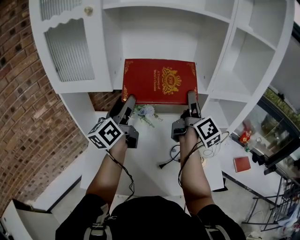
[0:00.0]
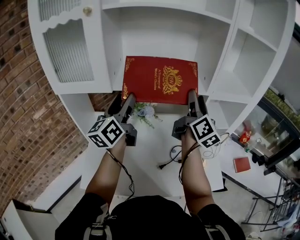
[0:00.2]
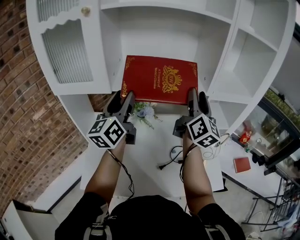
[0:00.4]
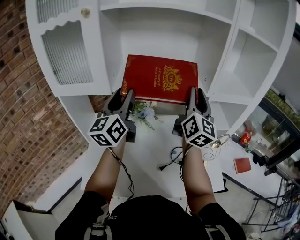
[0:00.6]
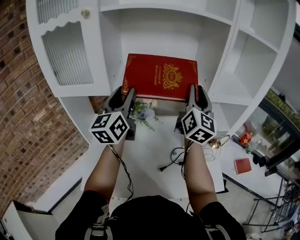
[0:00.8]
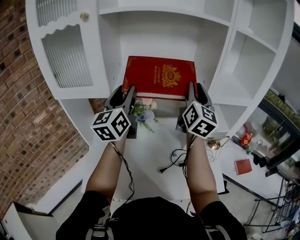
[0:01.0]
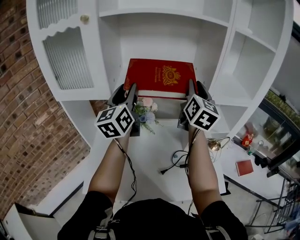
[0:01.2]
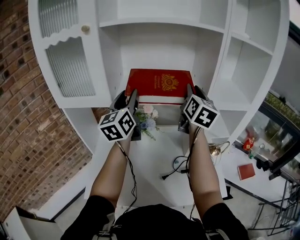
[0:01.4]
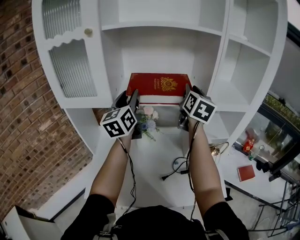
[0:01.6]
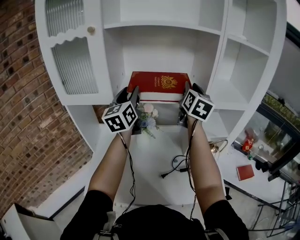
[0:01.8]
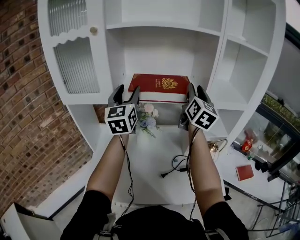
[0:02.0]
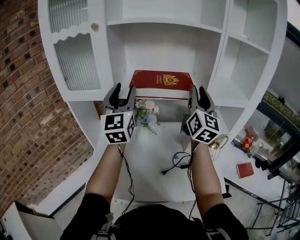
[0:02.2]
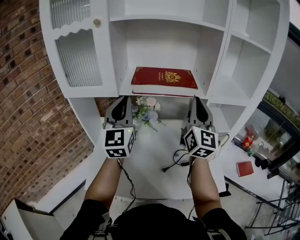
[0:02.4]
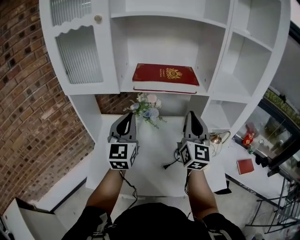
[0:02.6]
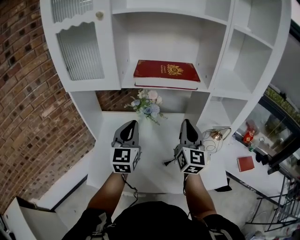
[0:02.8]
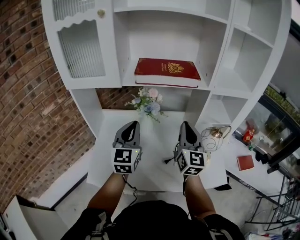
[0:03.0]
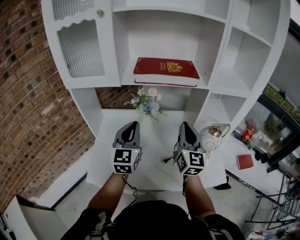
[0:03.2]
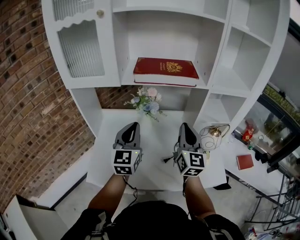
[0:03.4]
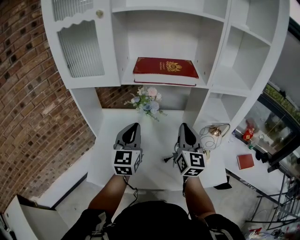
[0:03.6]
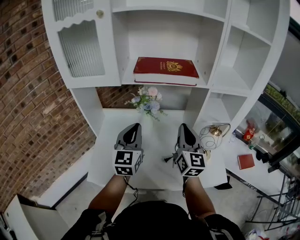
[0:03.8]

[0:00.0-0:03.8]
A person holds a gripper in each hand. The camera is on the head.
0:00.0 to 0:01.2: The grippers both shift upward and forward by some 10 cm. The right gripper twists about 40 degrees counterclockwise, seen from behind, and closes up. The left gripper changes its angle by approximately 20 degrees.
0:01.2 to 0:02.6: Both grippers move backward and downward, about 15 cm. The right gripper closes; the left gripper changes its angle by roughly 30 degrees, and closes.
0:02.6 to 0:03.8: The grippers both shift downward by some 5 cm.

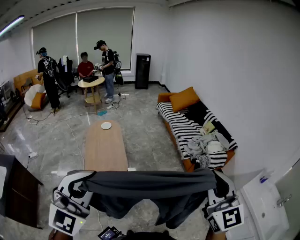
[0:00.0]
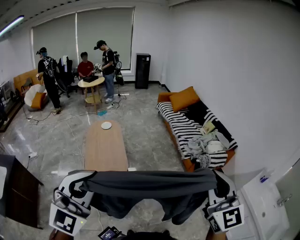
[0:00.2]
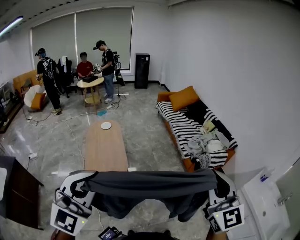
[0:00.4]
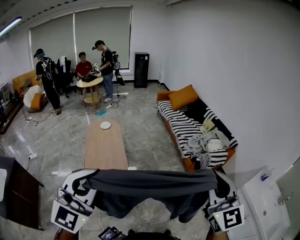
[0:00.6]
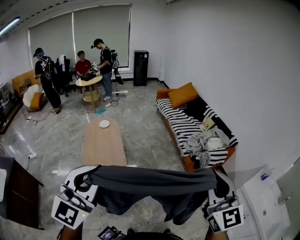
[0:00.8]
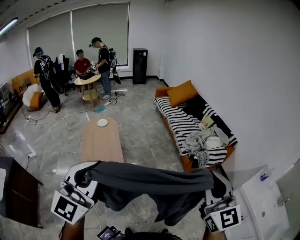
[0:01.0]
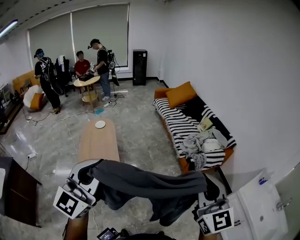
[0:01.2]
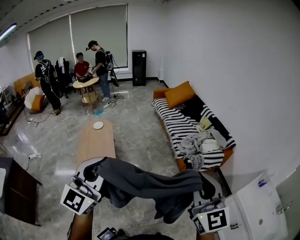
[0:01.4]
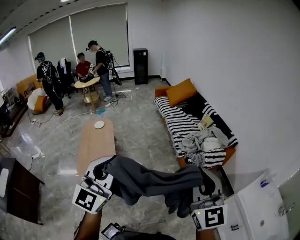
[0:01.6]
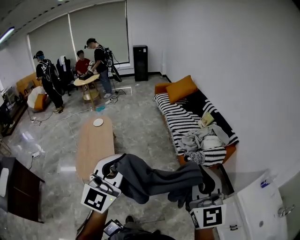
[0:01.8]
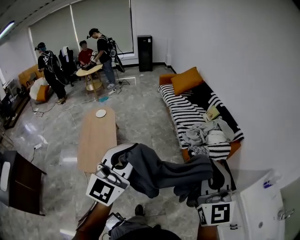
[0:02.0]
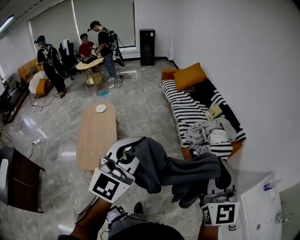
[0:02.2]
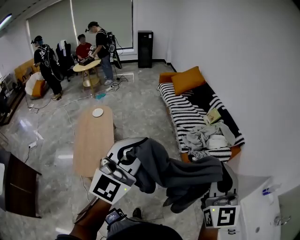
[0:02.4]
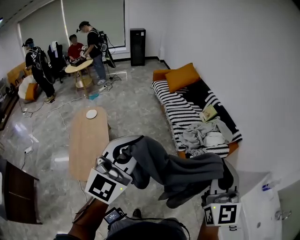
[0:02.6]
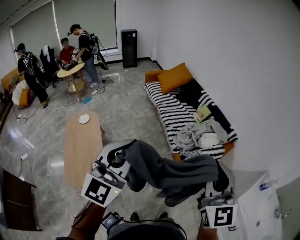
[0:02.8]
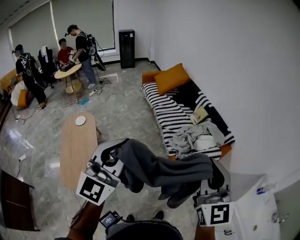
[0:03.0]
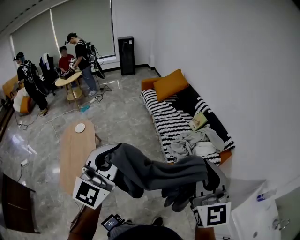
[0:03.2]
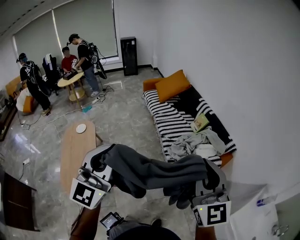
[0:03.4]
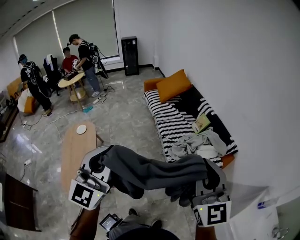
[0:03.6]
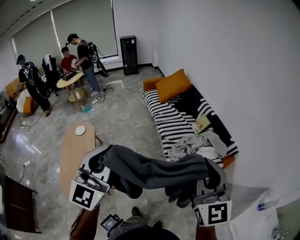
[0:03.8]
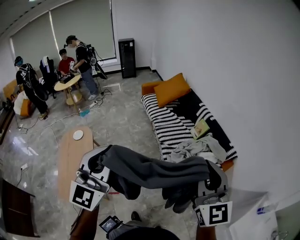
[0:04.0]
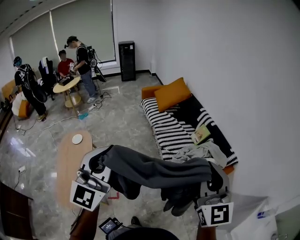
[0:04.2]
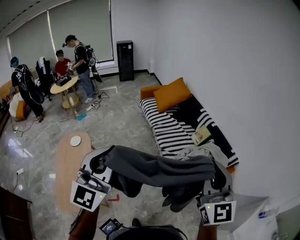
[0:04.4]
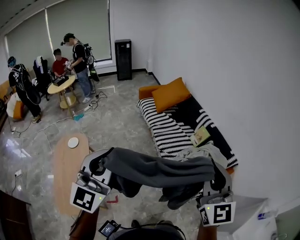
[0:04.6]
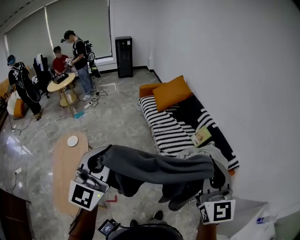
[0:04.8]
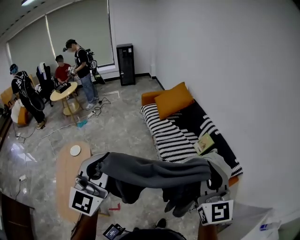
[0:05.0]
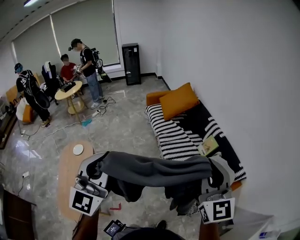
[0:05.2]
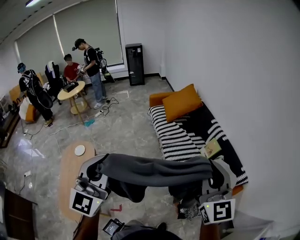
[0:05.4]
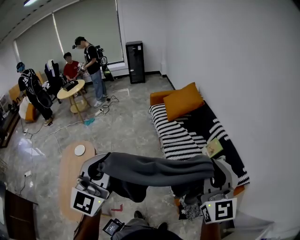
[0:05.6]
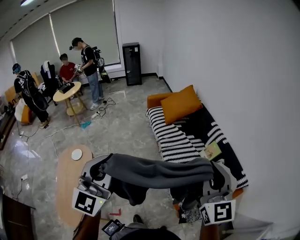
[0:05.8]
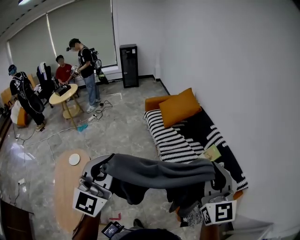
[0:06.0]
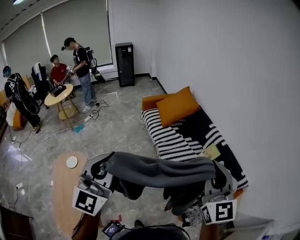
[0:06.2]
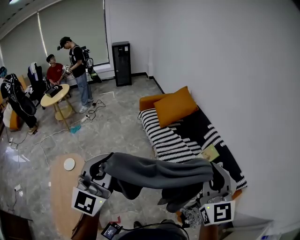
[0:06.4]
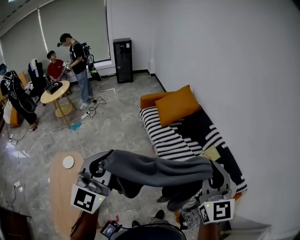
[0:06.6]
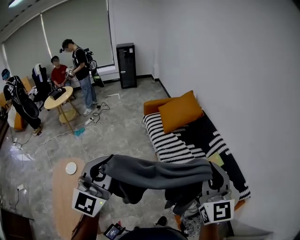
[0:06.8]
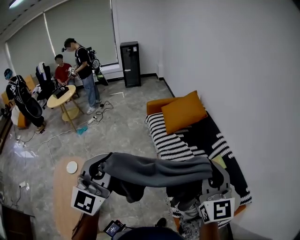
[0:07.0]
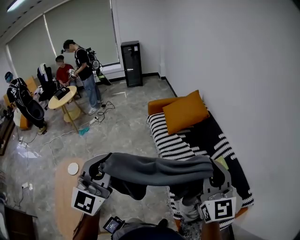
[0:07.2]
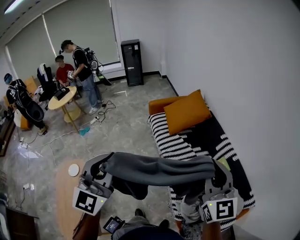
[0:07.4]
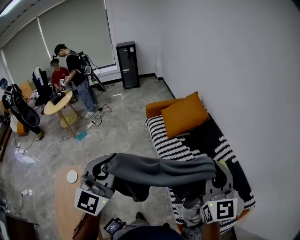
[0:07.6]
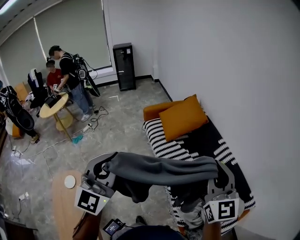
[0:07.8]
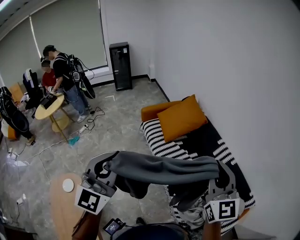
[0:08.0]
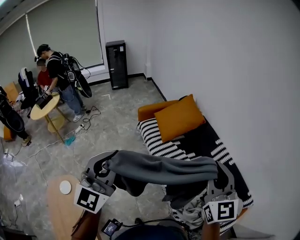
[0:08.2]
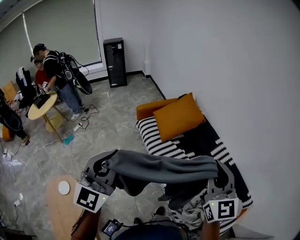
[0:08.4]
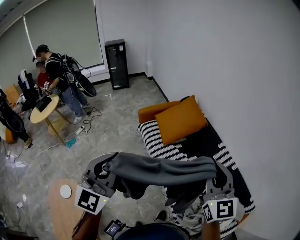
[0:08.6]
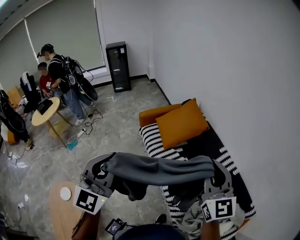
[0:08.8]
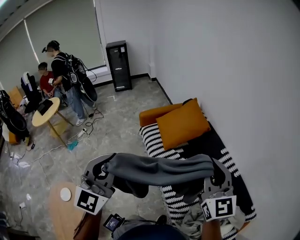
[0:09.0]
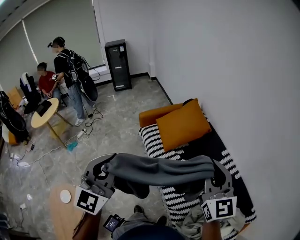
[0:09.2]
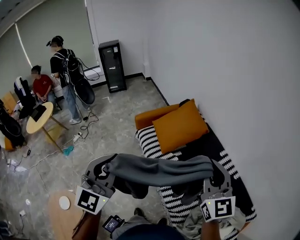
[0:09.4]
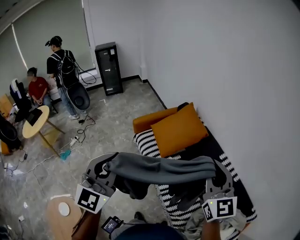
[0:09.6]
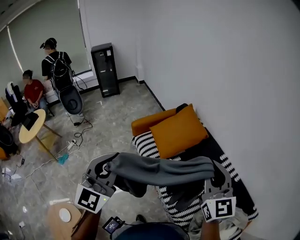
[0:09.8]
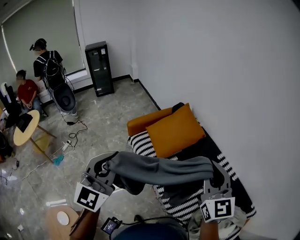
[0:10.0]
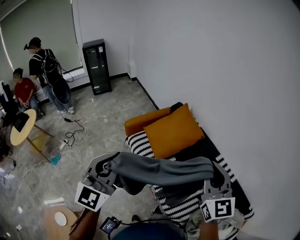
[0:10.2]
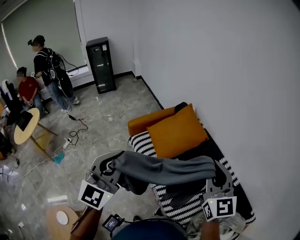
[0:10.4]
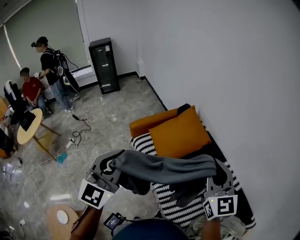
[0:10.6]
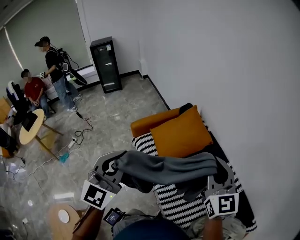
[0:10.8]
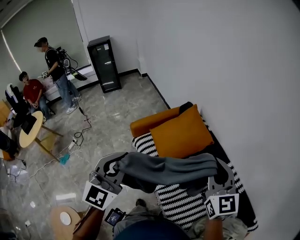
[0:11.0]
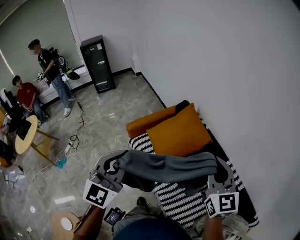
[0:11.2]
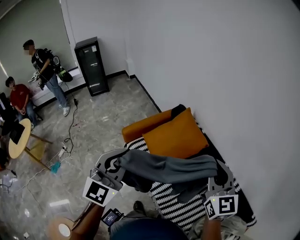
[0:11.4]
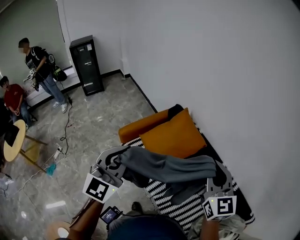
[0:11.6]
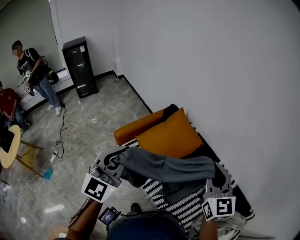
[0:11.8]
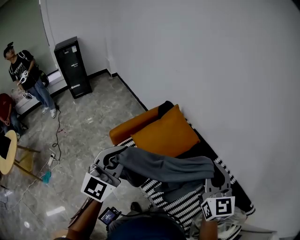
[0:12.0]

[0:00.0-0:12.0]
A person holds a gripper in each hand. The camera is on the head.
0:00.0 to 0:01.6: The two grippers go some 25 cm to the right and forward. The left gripper changes its angle by roughly 20 degrees.
0:01.6 to 0:03.0: Both grippers travel together forward, some 25 cm.
0:03.0 to 0:04.4: Both grippers travel together forward, roughly 20 cm.
0:04.4 to 0:06.0: The two grippers go some 25 cm forward.
0:06.0 to 0:07.6: Both grippers travel together forward, roughly 25 cm.
0:07.6 to 0:09.0: The grippers both shift forward by about 20 cm.
0:09.0 to 0:10.4: Both grippers travel together forward, about 20 cm.
0:10.4 to 0:12.0: The right gripper shifts roughly 15 cm forward. The left gripper goes approximately 20 cm forward.

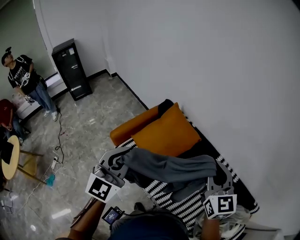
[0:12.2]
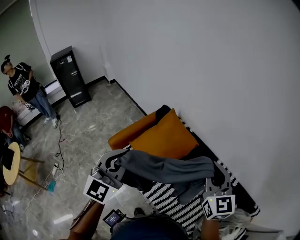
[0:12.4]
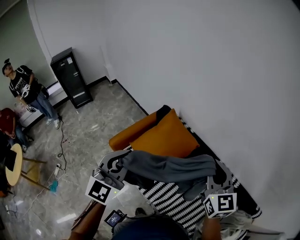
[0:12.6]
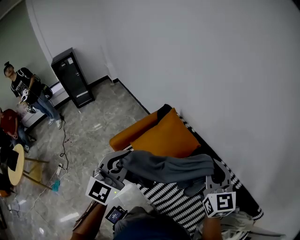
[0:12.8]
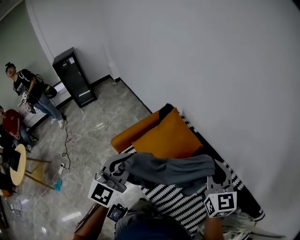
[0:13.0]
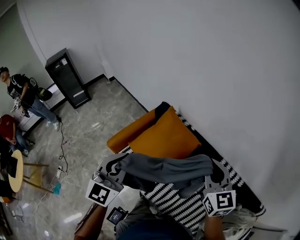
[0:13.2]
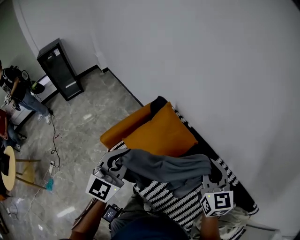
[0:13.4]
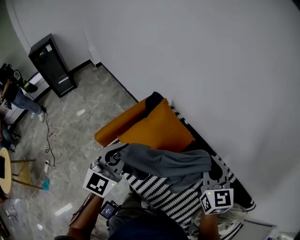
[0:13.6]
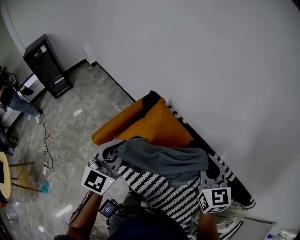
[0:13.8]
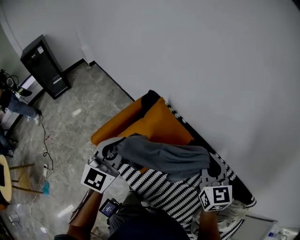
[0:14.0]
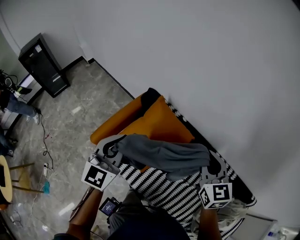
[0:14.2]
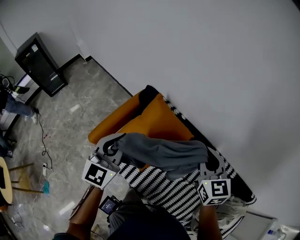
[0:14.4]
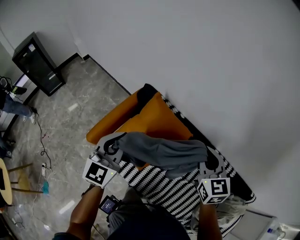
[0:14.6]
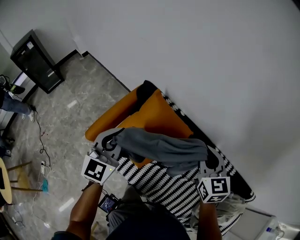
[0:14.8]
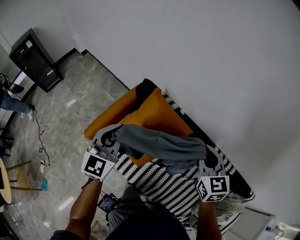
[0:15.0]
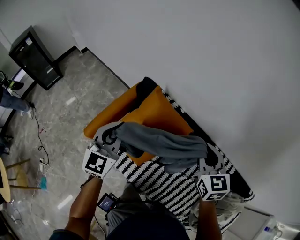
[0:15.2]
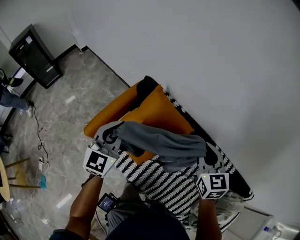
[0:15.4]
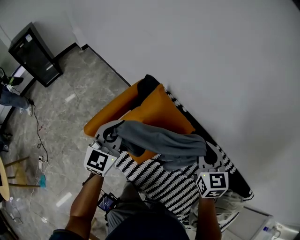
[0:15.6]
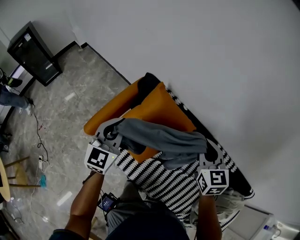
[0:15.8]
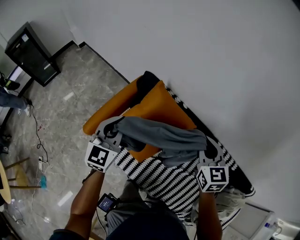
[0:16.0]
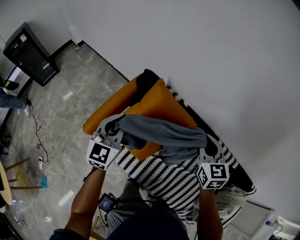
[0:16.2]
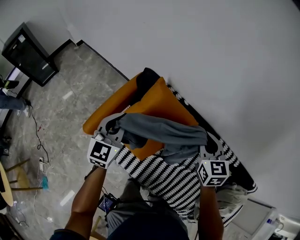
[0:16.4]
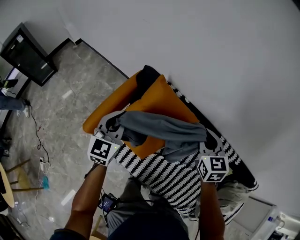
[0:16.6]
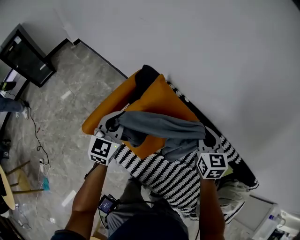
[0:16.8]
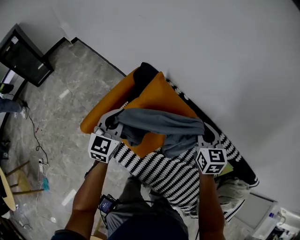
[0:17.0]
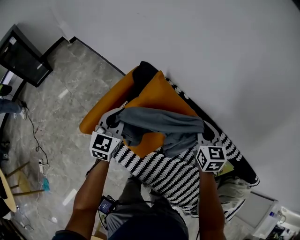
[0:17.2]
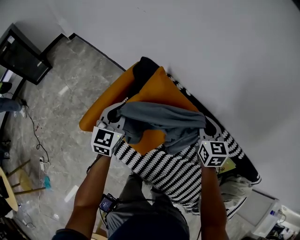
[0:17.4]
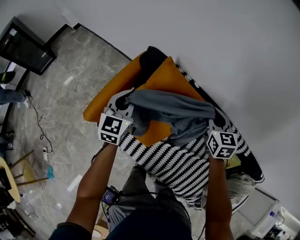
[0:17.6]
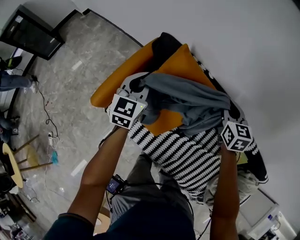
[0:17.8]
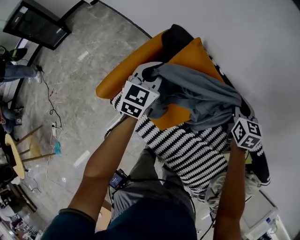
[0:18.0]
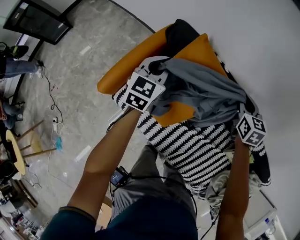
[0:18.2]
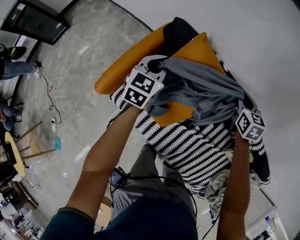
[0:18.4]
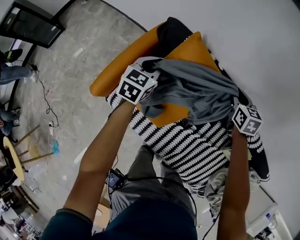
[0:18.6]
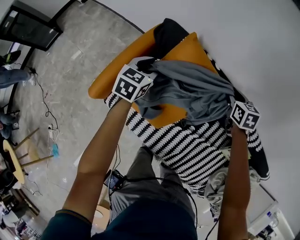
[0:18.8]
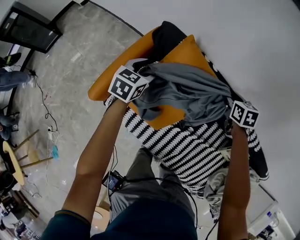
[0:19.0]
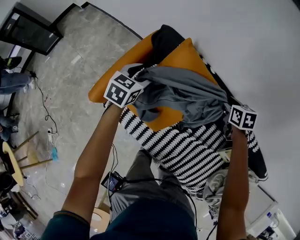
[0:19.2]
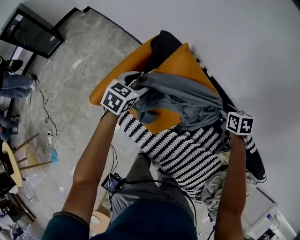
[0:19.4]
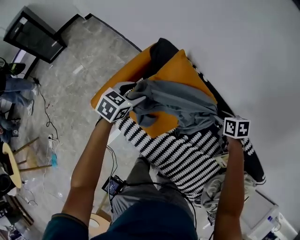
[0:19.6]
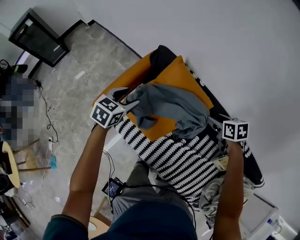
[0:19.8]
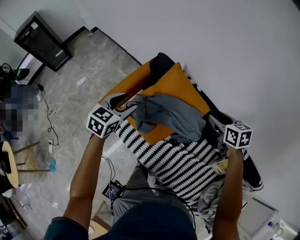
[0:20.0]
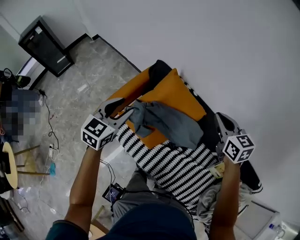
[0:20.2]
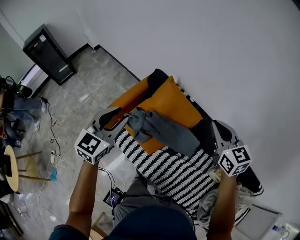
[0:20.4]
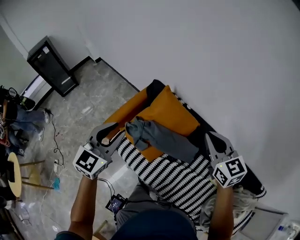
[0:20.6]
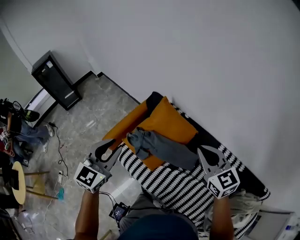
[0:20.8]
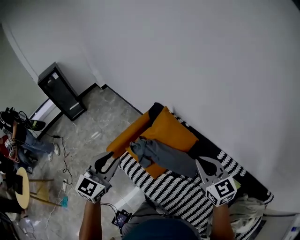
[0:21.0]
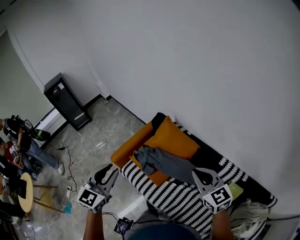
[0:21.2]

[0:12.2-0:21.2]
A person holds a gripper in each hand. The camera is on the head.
0:12.2 to 0:13.8: The grippers both shift forward and downward by approximately 20 cm.
0:13.8 to 0:15.2: The left gripper shifts roughly 10 cm forward and downward; the right gripper goes about 10 cm downward and forward.
0:15.2 to 0:16.6: The grippers both shift downward by some 10 cm.
0:16.6 to 0:18.2: The two grippers go roughly 15 cm downward and forward.
0:18.2 to 0:19.8: The two grippers go roughly 10 cm backward. The right gripper rotates some 30 degrees, and opens up, while the left gripper rotates approximately 20 degrees, and opens its fingers.
0:19.8 to 0:21.2: Both grippers travel together upward and backward, some 40 cm. The right gripper tips its fingers upward by approximately 40 degrees, and closes. The left gripper rotates about 40 degrees, and closes.
